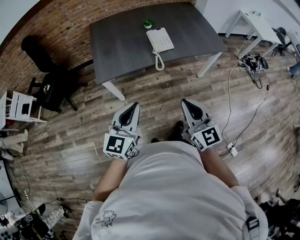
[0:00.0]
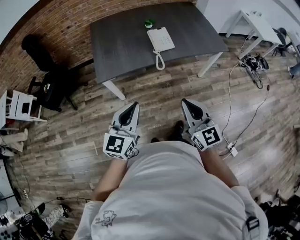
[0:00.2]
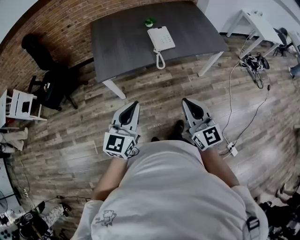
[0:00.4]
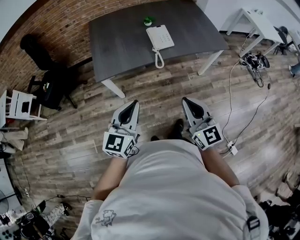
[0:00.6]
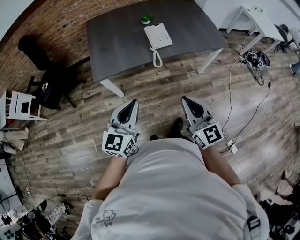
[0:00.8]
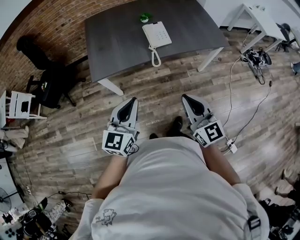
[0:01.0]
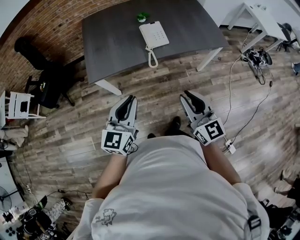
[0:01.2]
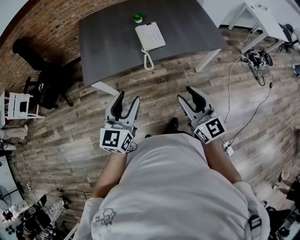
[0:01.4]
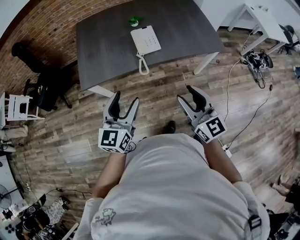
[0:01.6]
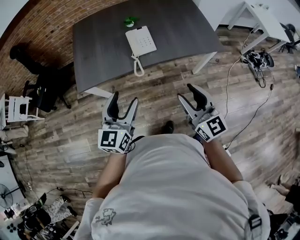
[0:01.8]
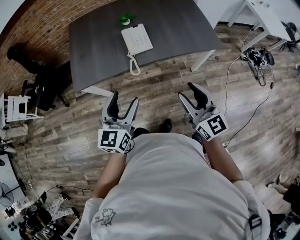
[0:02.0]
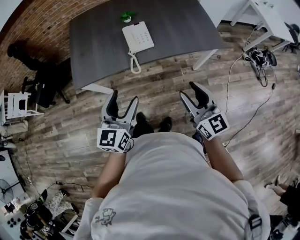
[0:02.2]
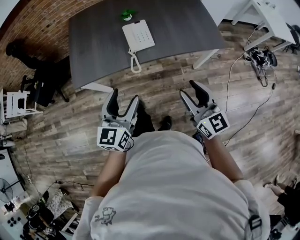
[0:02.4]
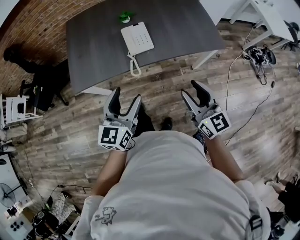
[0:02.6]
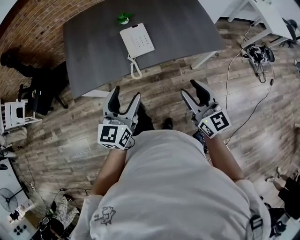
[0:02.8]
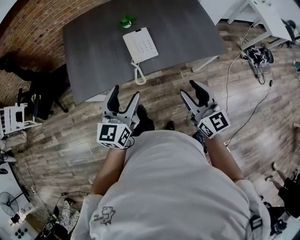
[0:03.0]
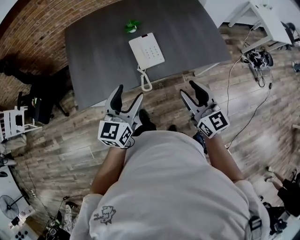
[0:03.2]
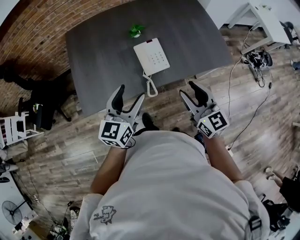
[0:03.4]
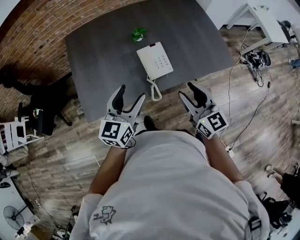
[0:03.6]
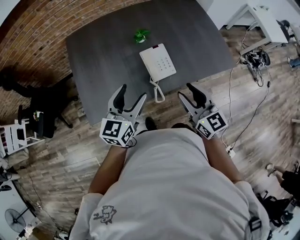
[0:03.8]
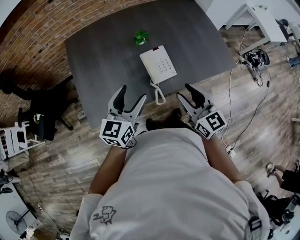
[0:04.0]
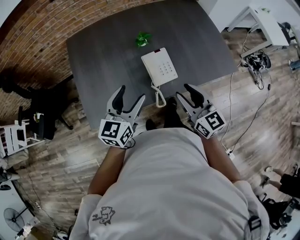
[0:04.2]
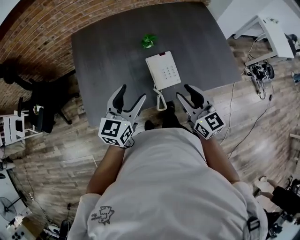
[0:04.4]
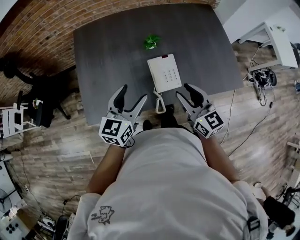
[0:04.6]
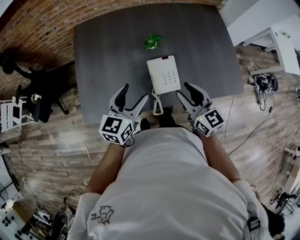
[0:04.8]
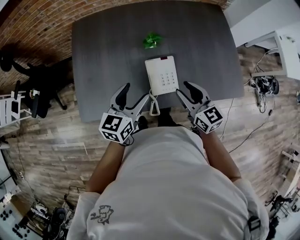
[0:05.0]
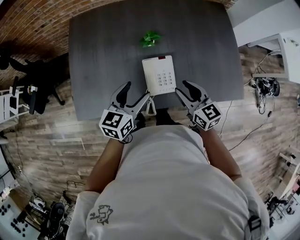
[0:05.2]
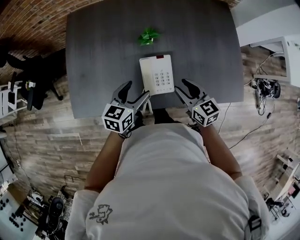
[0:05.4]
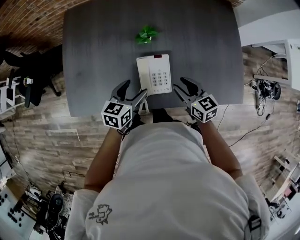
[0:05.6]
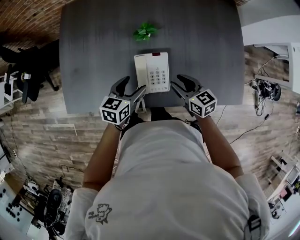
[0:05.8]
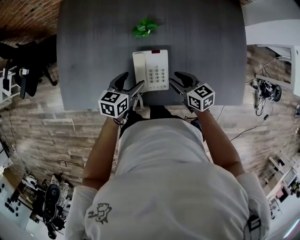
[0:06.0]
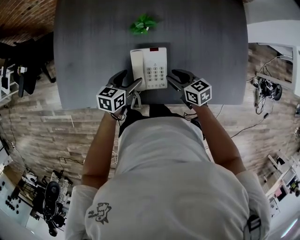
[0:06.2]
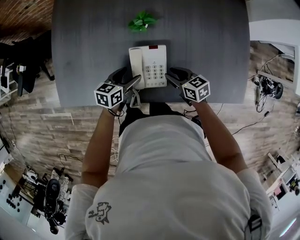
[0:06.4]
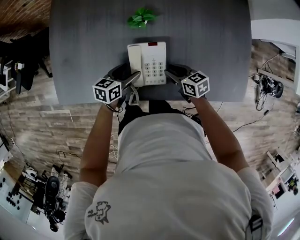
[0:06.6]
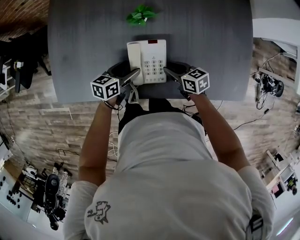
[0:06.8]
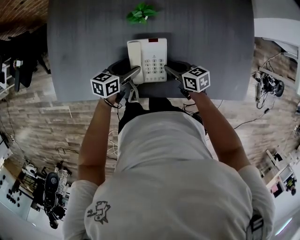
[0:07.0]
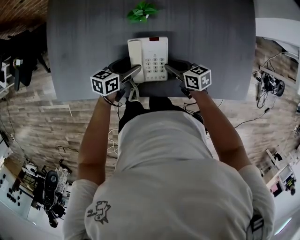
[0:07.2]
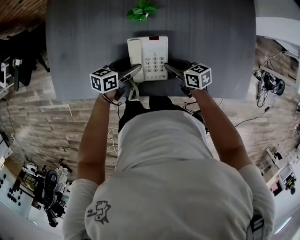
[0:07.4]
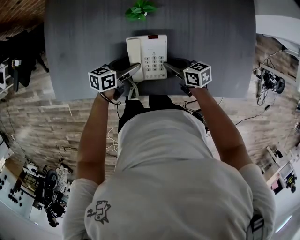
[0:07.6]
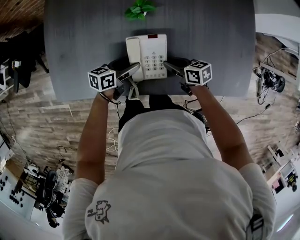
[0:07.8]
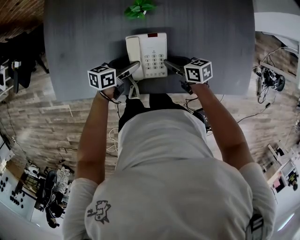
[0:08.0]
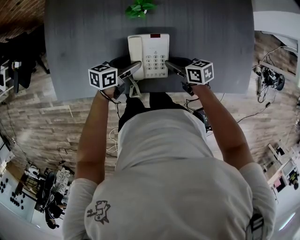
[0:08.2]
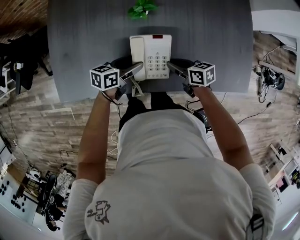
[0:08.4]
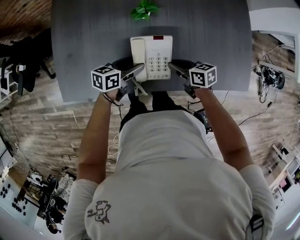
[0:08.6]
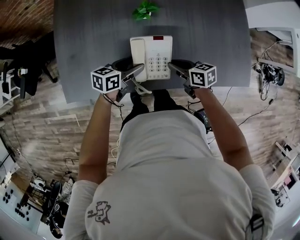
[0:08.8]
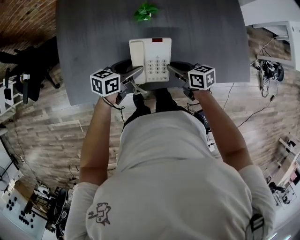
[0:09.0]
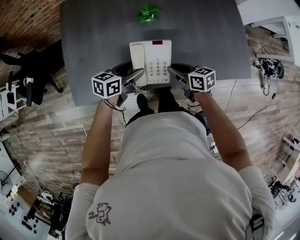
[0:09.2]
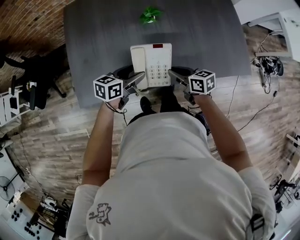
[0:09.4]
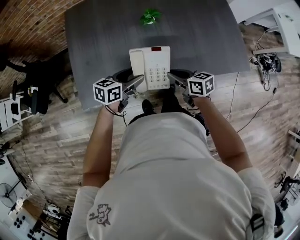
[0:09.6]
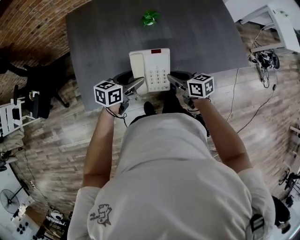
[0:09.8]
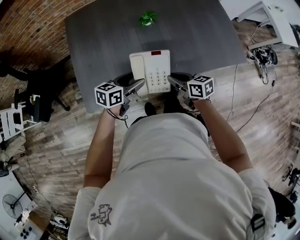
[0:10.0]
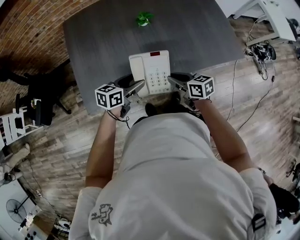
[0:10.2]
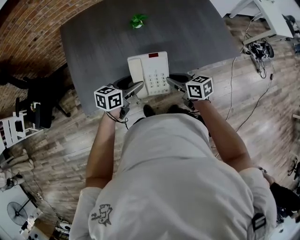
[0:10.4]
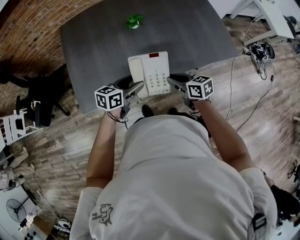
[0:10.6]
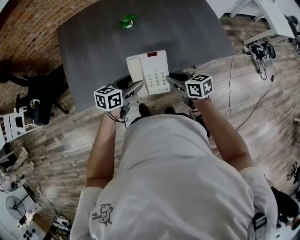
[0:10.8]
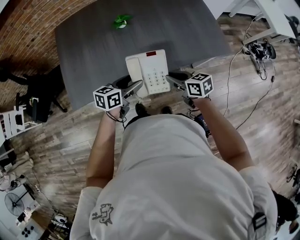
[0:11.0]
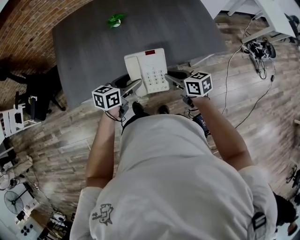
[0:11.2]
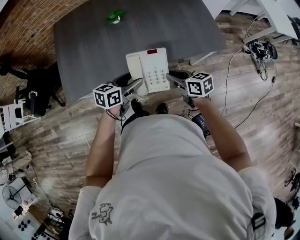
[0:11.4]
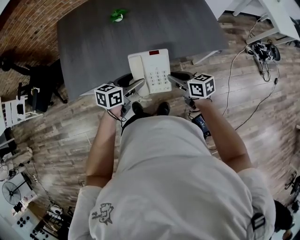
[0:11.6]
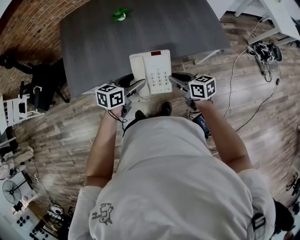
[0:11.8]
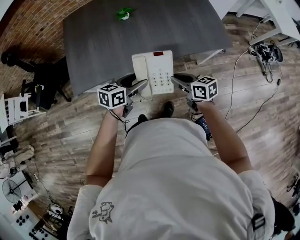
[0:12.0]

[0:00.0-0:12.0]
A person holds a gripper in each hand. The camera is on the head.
0:00.0 to 0:01.6: The left gripper shifts roughly 15 cm forward and to the right, and opens; the right gripper shifts about 20 cm to the right and forward, and opens up.
0:01.6 to 0:03.0: Both grippers move forward, roughly 15 cm.
0:03.0 to 0:04.4: The grippers both shift forward and to the left by some 20 cm.
0:04.4 to 0:06.0: The left gripper shifts about 25 cm downward, forward and to the right, and changes its angle by about 30 degrees, while the right gripper is displaced downward and forward by approximately 30 cm, and rotates approximately 40 degrees.
0:06.0 to 0:07.6: Both grippers travel together downward, approximately 10 cm. The left gripper rotates approximately 20 degrees.
0:07.6 to 0:09.0: The grippers both shift upward by roughly 10 cm.
0:09.0 to 0:10.4: The right gripper is displaced backward, upward and to the left by some 15 cm; the left gripper shifts roughly 15 cm backward, to the left and upward.
0:10.4 to 0:12.0: The two grippers go approximately 20 cm to the right and backward.

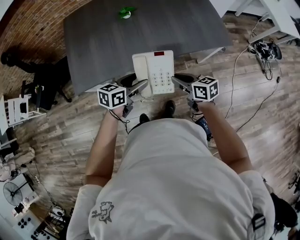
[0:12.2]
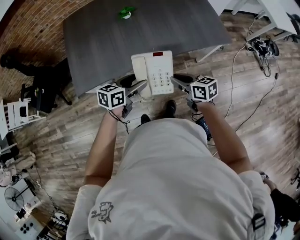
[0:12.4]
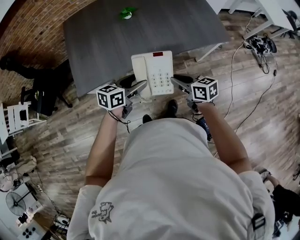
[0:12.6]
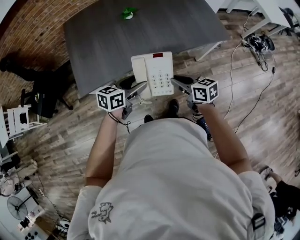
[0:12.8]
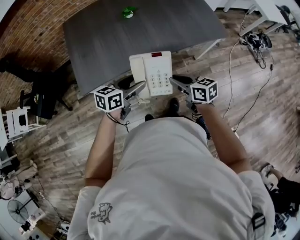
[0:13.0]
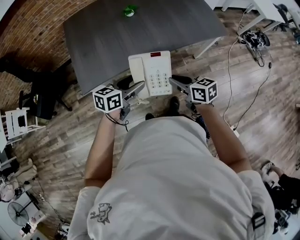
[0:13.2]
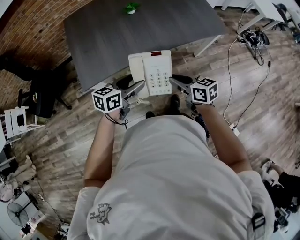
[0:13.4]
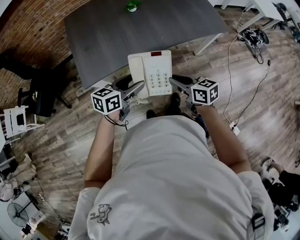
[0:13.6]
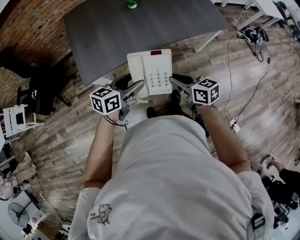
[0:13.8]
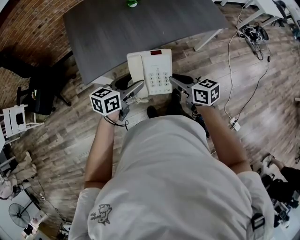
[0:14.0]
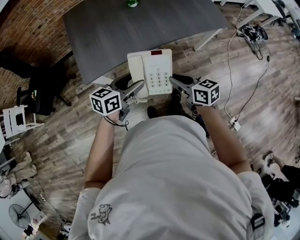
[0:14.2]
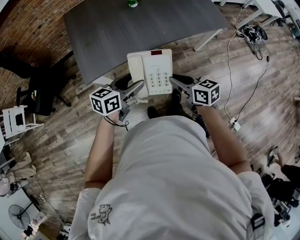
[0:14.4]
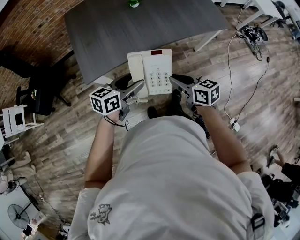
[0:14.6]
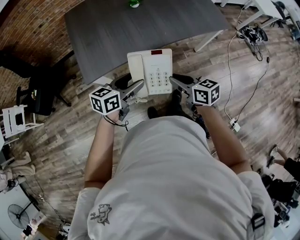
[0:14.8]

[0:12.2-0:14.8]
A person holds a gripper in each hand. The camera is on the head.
0:12.2 to 0:13.4: Both grippers move to the left and backward, approximately 20 cm.
0:13.4 to 0:14.8: There are only small adjustments of the grippers.

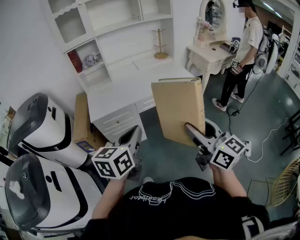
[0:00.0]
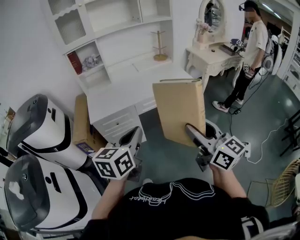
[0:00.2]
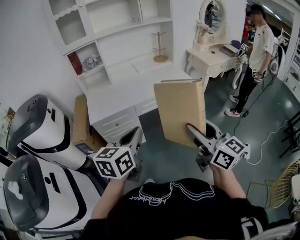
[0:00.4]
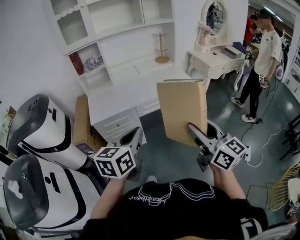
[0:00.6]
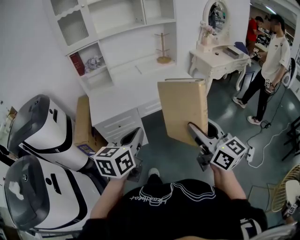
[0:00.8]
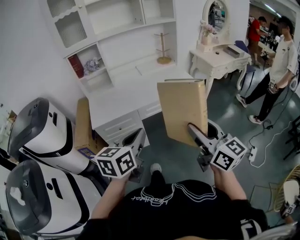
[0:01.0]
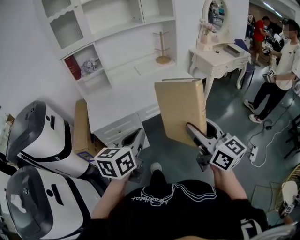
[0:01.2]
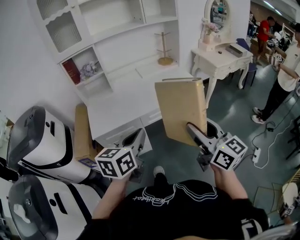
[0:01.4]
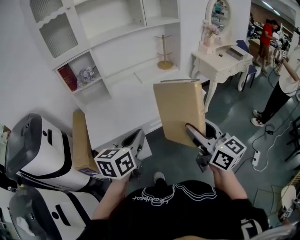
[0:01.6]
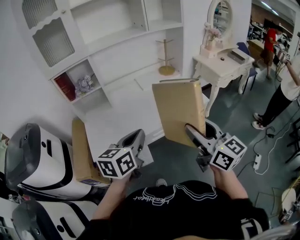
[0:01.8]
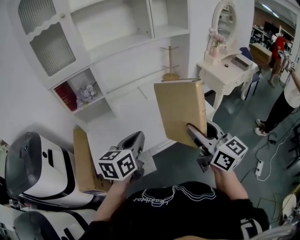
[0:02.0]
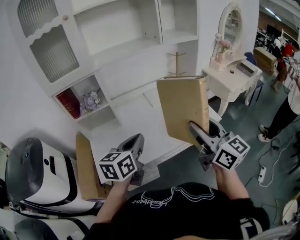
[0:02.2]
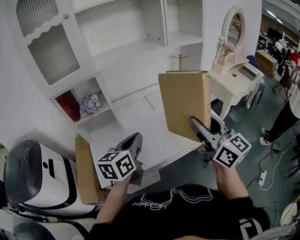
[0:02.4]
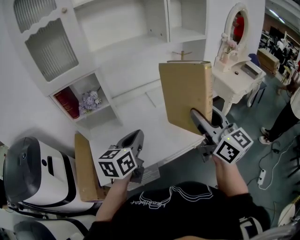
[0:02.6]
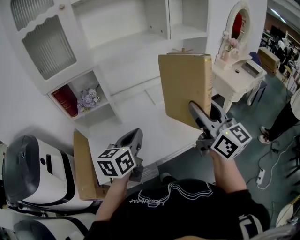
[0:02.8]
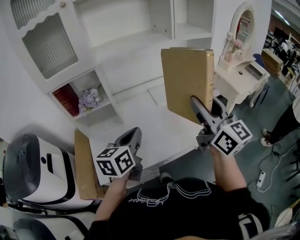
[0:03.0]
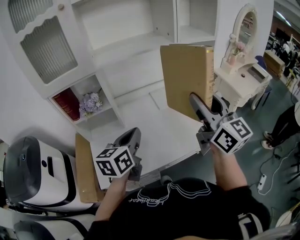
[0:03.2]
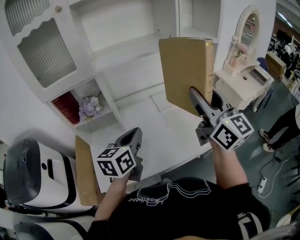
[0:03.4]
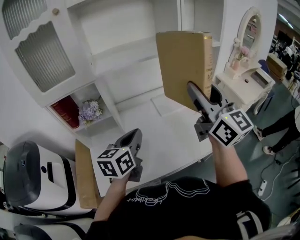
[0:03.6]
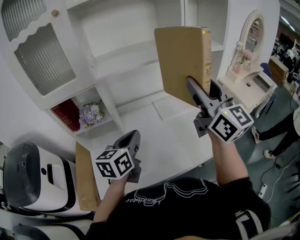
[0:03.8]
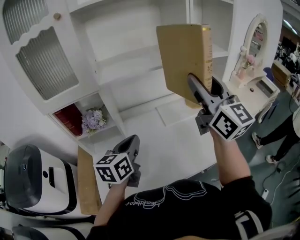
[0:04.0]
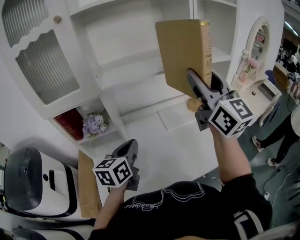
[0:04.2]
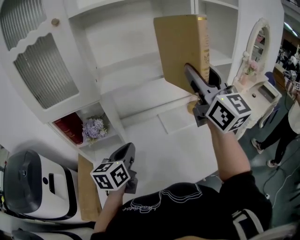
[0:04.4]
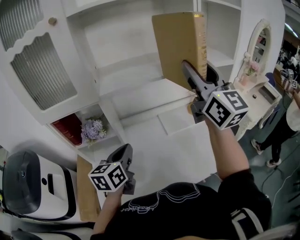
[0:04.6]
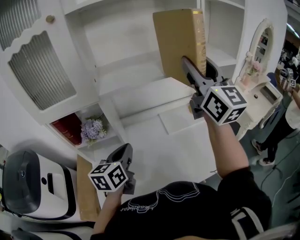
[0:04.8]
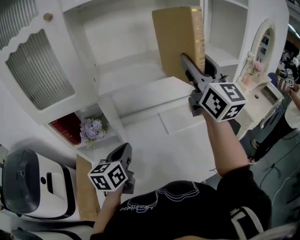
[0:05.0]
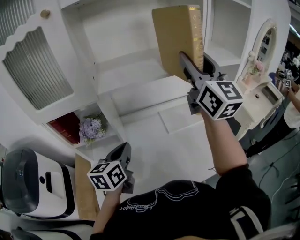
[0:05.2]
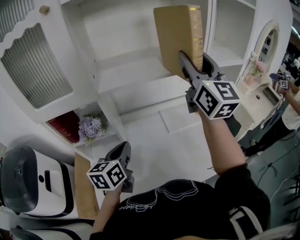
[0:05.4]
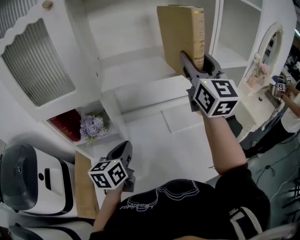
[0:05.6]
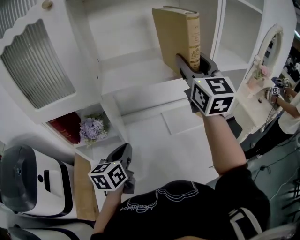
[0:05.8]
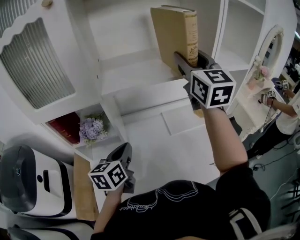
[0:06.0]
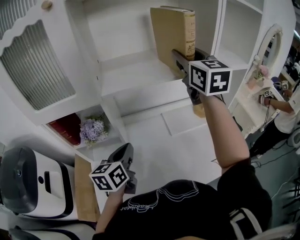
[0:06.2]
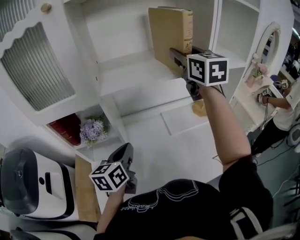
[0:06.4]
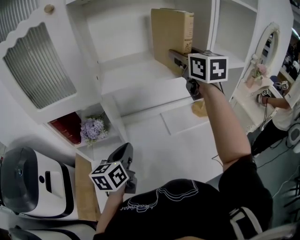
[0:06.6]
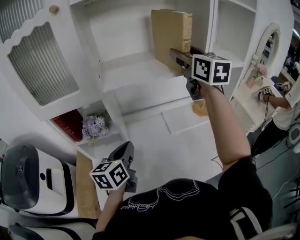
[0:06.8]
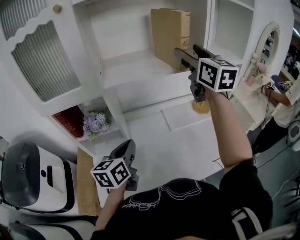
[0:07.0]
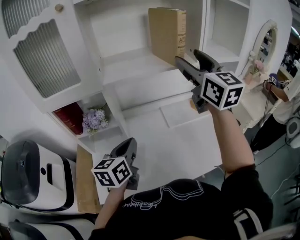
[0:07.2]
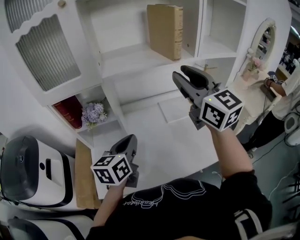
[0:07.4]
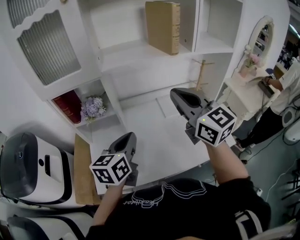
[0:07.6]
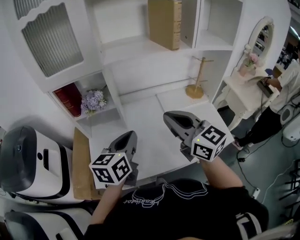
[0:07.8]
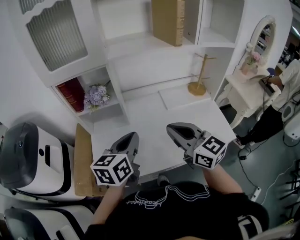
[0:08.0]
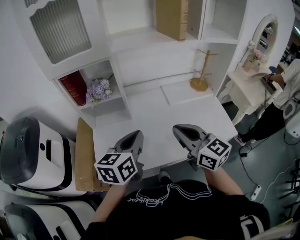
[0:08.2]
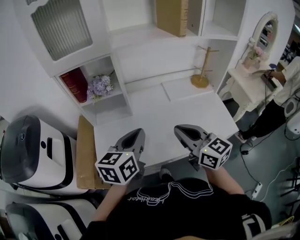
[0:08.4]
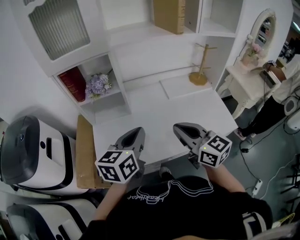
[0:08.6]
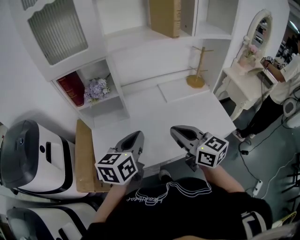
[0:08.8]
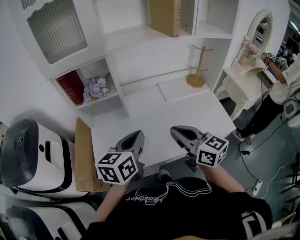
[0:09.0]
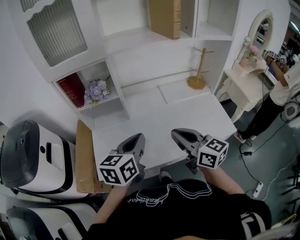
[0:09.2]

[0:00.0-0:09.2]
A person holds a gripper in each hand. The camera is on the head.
0:00.0 to 0:01.6: Both grippers travel together forward, about 20 cm.
0:01.6 to 0:03.0: Both grippers travel together forward, about 30 cm.
0:03.0 to 0:04.6: The left gripper moves forward and to the left, about 15 cm. The right gripper travels forward and upward by roughly 25 cm.
0:04.6 to 0:06.2: The left gripper moves approximately 5 cm, while the right gripper is displaced forward by some 15 cm, and turns by some 20 degrees.
0:06.2 to 0:07.6: The right gripper moves backward, approximately 25 cm, turns by about 20 degrees, and closes its fingers. Meanwhile the left gripper goes roughly 10 cm backward.
0:07.6 to 0:09.2: The right gripper moves downward and backward, about 20 cm, and swivels roughly 30 degrees; the left gripper heads backward, covering some 10 cm.
